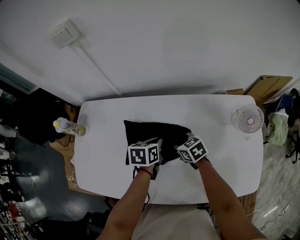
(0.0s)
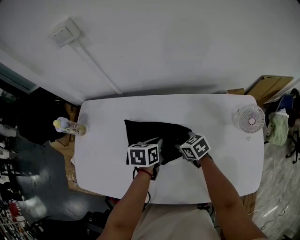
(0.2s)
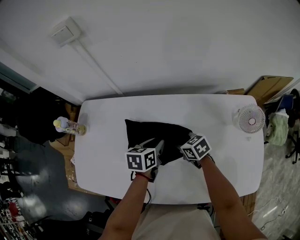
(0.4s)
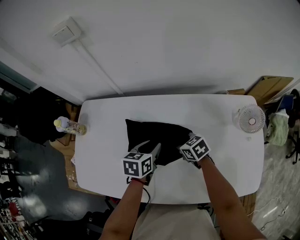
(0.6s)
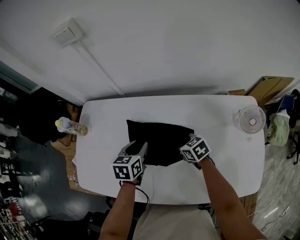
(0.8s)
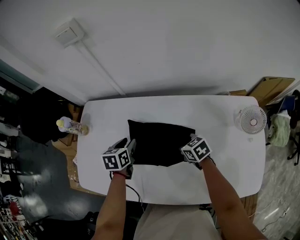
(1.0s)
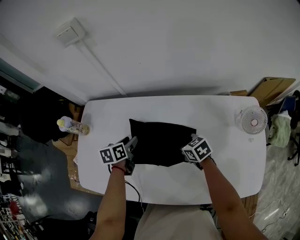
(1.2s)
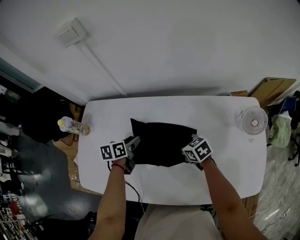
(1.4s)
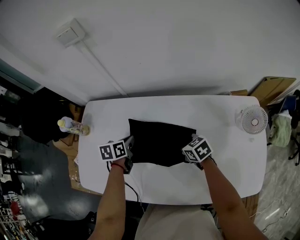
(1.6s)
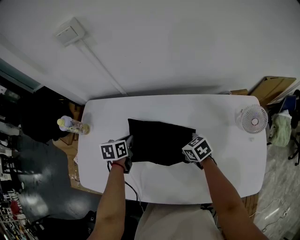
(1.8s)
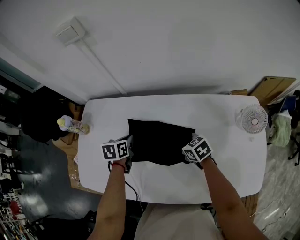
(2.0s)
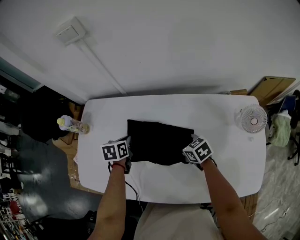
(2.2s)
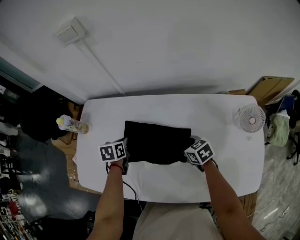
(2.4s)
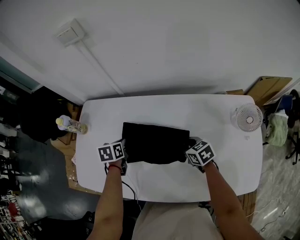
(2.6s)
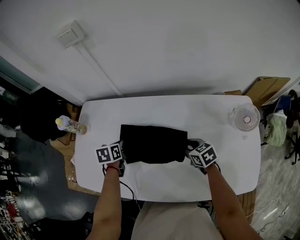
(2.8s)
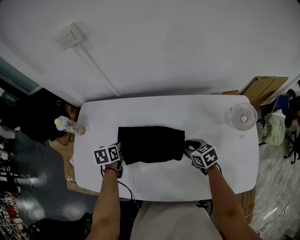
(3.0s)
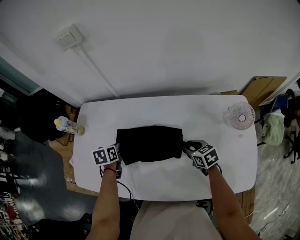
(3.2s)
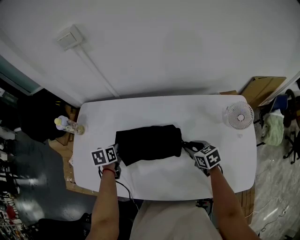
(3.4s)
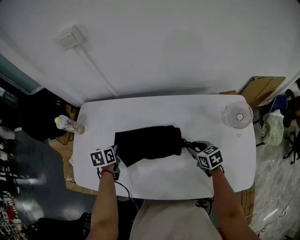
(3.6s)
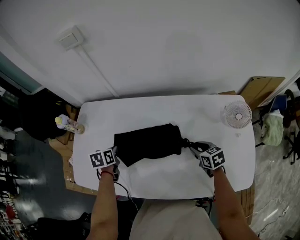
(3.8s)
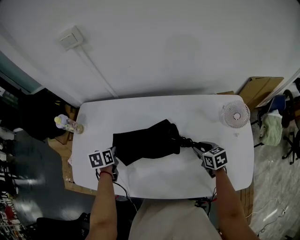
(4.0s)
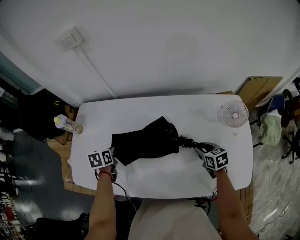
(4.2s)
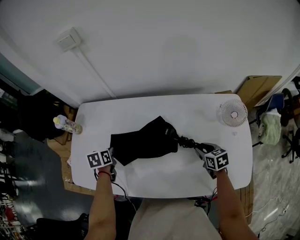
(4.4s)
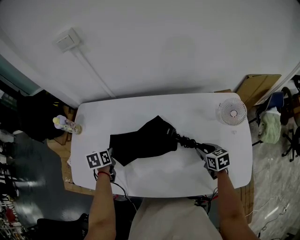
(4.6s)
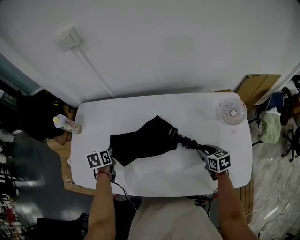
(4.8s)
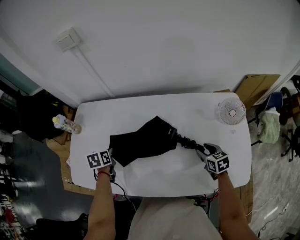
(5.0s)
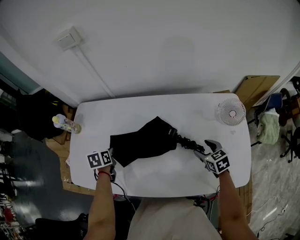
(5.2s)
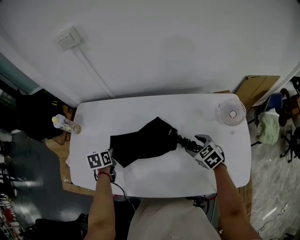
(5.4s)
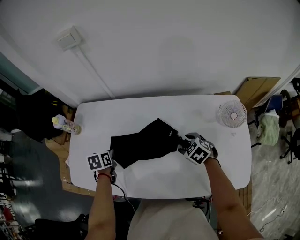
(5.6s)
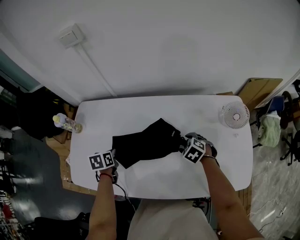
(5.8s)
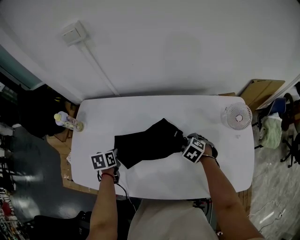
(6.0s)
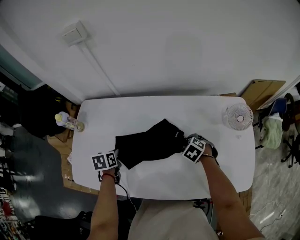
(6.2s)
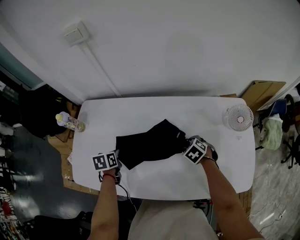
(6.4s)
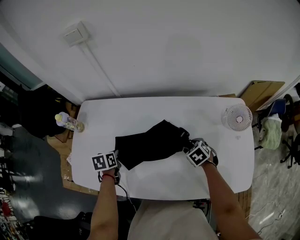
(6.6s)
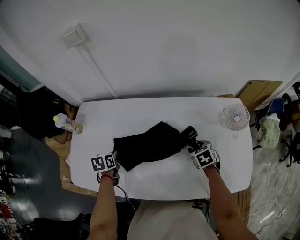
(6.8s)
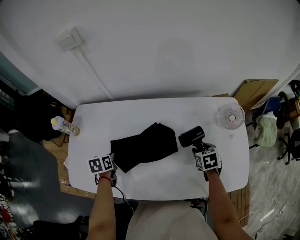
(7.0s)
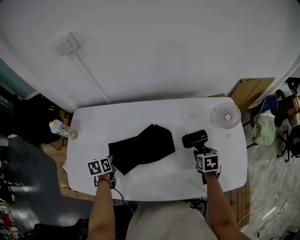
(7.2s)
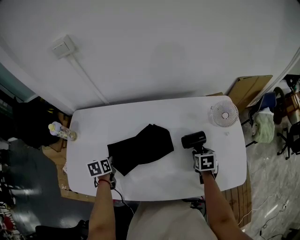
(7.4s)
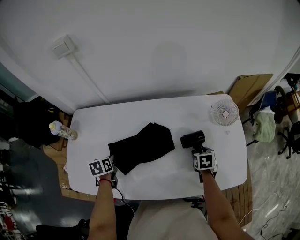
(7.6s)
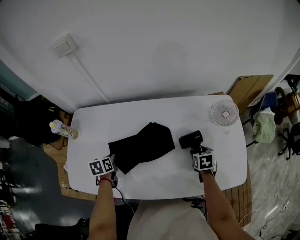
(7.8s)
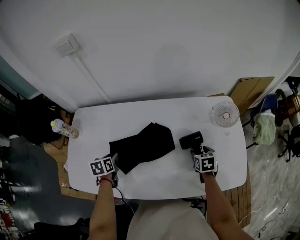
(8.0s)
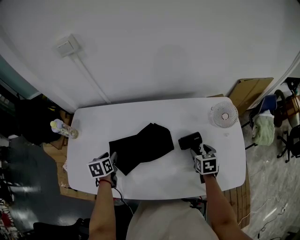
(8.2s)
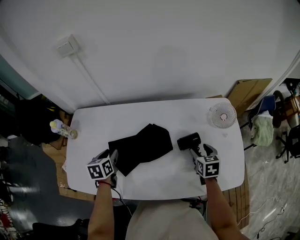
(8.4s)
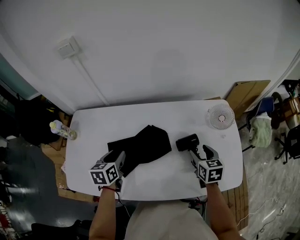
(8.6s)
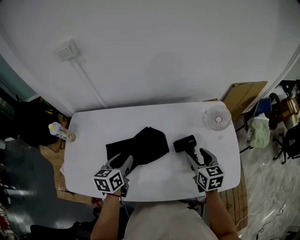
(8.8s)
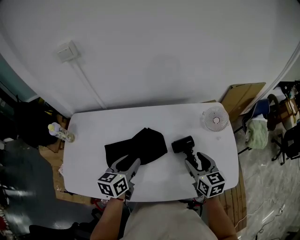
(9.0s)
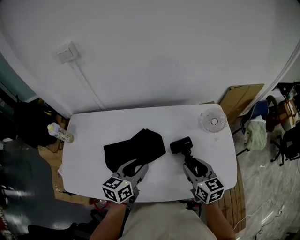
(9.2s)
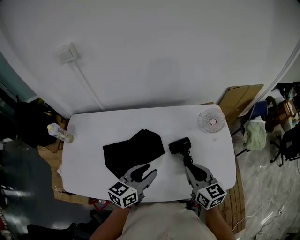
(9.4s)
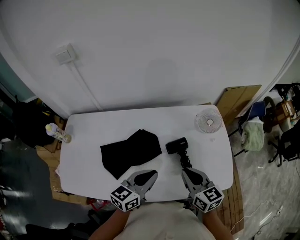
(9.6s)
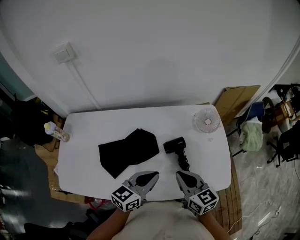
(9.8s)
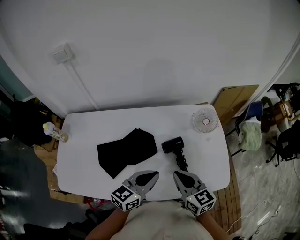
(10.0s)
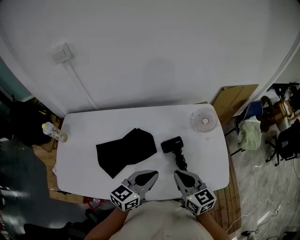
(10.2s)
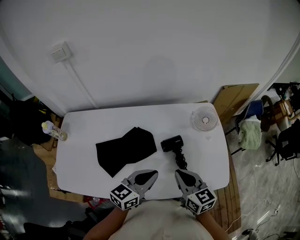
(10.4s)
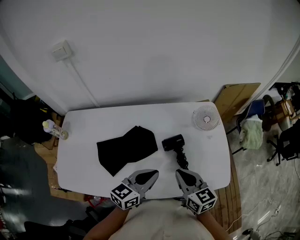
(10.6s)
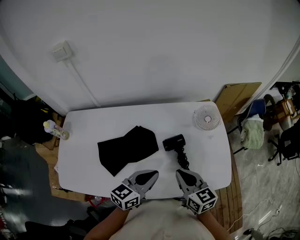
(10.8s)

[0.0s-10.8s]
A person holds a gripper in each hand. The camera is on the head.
0.0s to 1.6s: The left gripper shifts about 15 cm to the left, and opens, then closes once more.
1.6s to 3.0s: The right gripper travels backward and to the right by roughly 10 cm; the left gripper shifts by about 5 cm.
3.0s to 4.6s: The right gripper heads to the right and backward, covering approximately 15 cm.
4.6s to 6.2s: The right gripper moves to the left and forward, about 10 cm, rotates around the line of its fingers by roughly 40 degrees, counterclockwise from behind, and opens its fingers.
6.2s to 7.8s: The right gripper goes some 15 cm to the right and backward, and rotates around the line of its fingers by about 50 degrees, clockwise from behind.
7.8s to 9.2s: The right gripper moves upward, approximately 20 cm, and angles its fingers upward, by roughly 30 degrees, while the left gripper goes approximately 25 cm to the right and upward, points its fingers some 30 degrees further upward, and opens its fingers.
9.2s to 10.8s: The left gripper heads to the right, covering about 10 cm, and closes. Meanwhile the right gripper heads backward, covering roughly 5 cm, and closes.

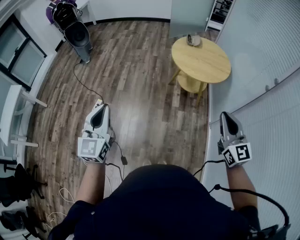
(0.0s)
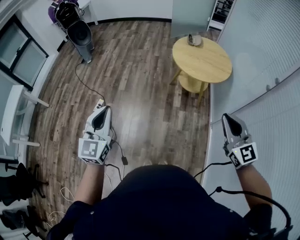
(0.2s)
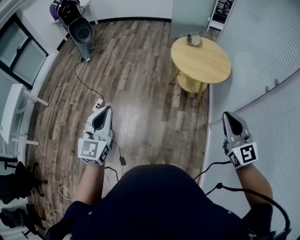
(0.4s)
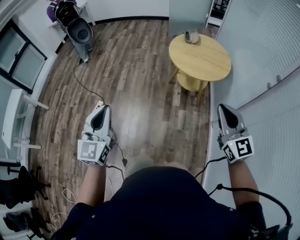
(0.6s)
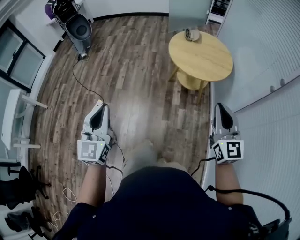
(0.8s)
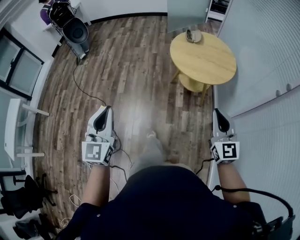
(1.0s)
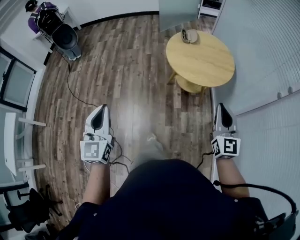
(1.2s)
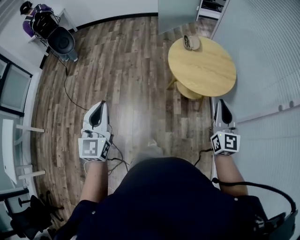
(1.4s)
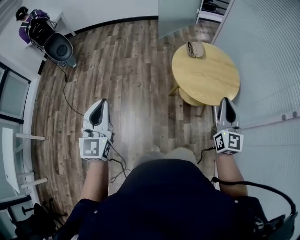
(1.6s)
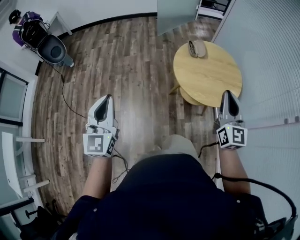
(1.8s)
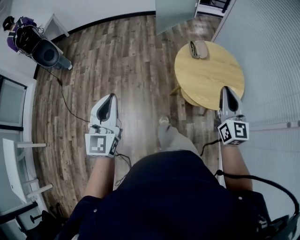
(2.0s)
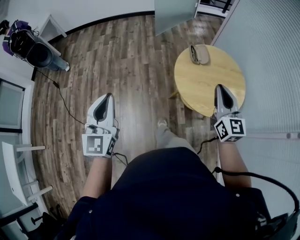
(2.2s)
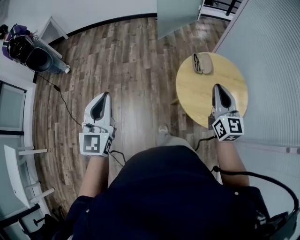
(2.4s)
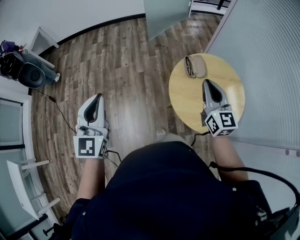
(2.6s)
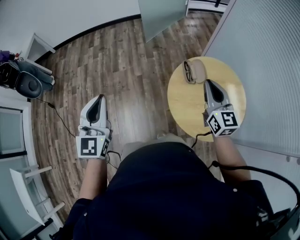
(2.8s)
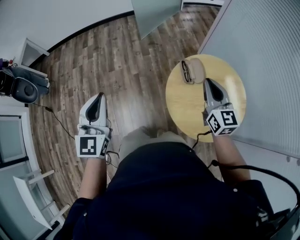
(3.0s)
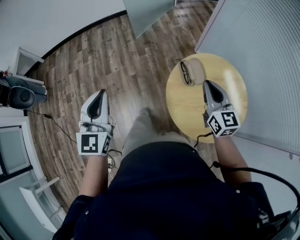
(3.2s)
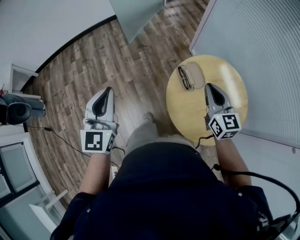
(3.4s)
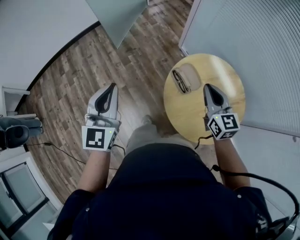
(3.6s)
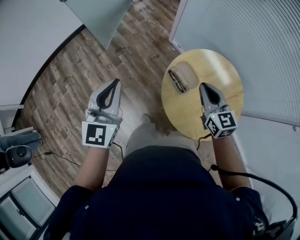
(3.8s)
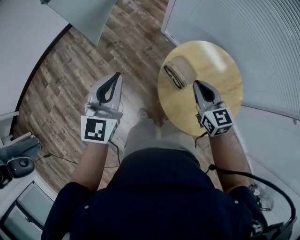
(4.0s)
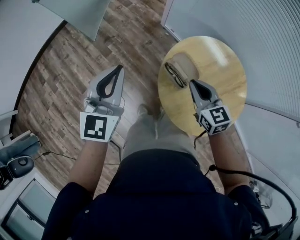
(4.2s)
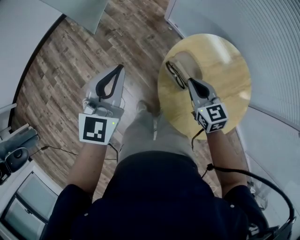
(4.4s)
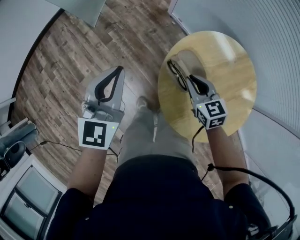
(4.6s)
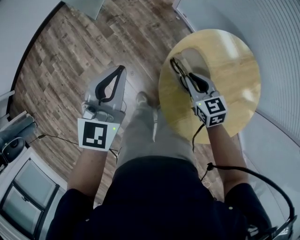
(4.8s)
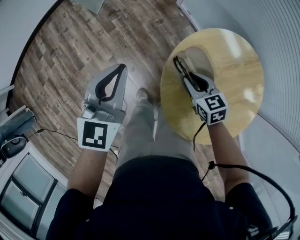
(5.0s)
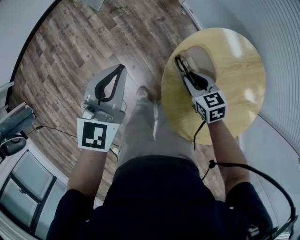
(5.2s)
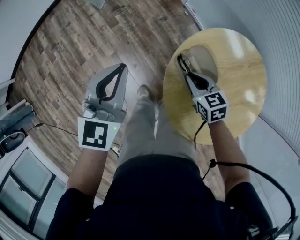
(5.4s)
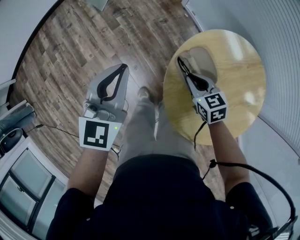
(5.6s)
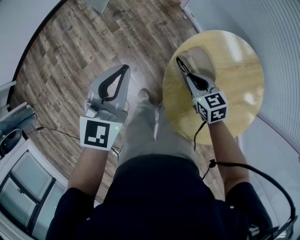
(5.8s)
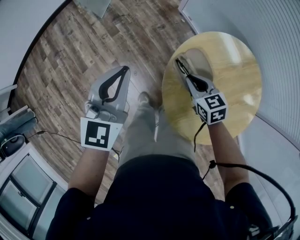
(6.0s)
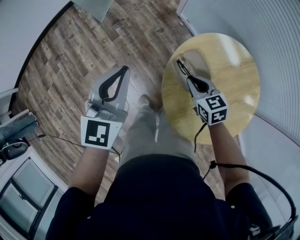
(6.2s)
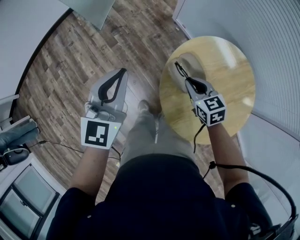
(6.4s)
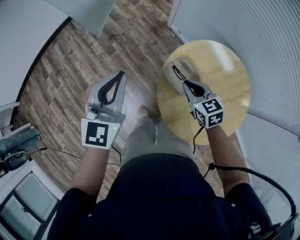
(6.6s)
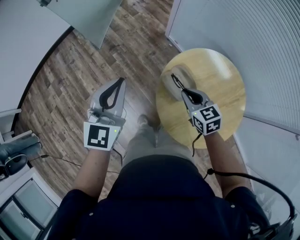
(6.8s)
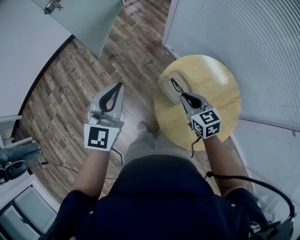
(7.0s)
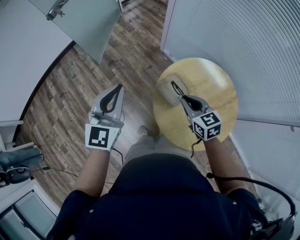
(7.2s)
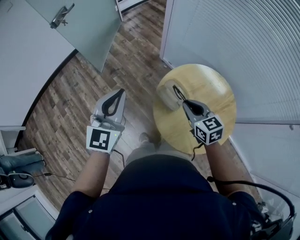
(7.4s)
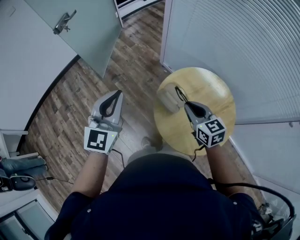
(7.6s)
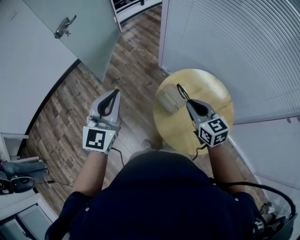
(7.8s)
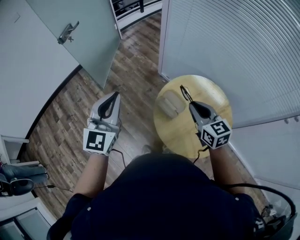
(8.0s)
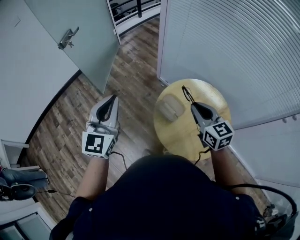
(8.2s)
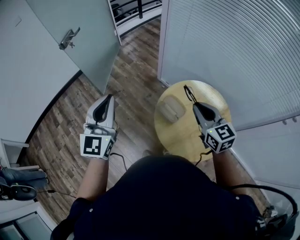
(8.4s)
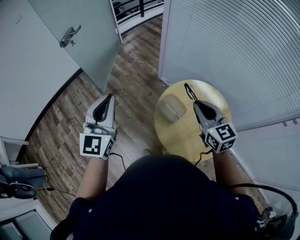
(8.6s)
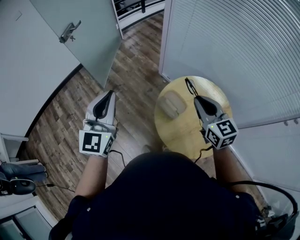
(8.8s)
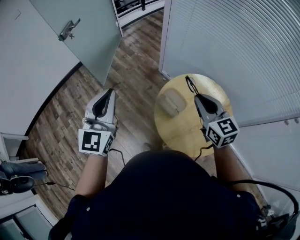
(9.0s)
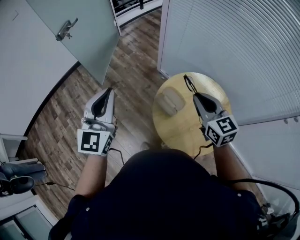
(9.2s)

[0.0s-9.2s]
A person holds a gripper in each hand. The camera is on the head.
0.0s to 1.6s: Both grippers move forward, roughly 40 cm. The right gripper turns by roughly 30 degrees.
1.6s to 3.0s: The two grippers travel together, forward, about 50 cm.
3.0s to 4.6s: The right gripper shifts about 25 cm downward, and changes its angle by roughly 30 degrees, while the left gripper changes place by about 40 cm, and swivels roughly 40 degrees.
6.2s to 7.6s: Both grippers travel together upward and backward, about 20 cm. The right gripper swivels about 20 degrees.
7.6s to 9.2s: The left gripper goes about 5 cm upward; the right gripper goes roughly 10 cm upward.

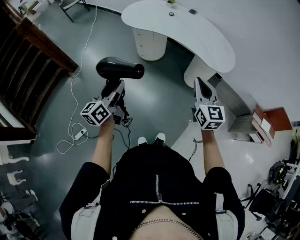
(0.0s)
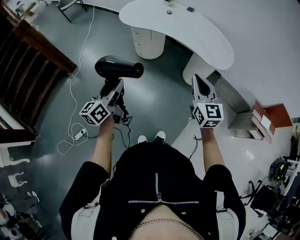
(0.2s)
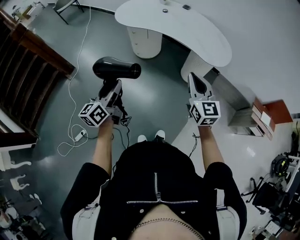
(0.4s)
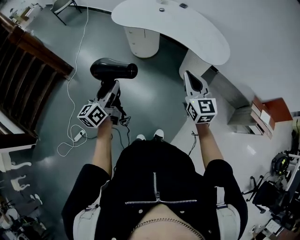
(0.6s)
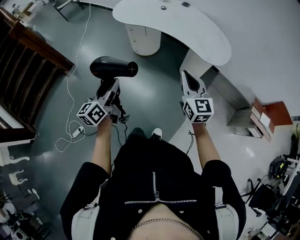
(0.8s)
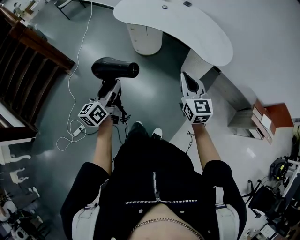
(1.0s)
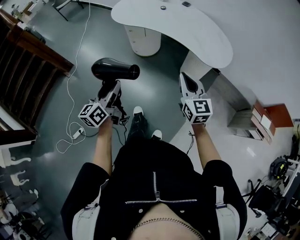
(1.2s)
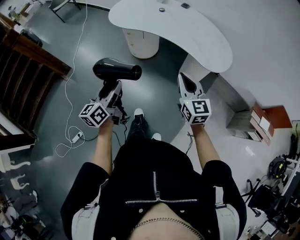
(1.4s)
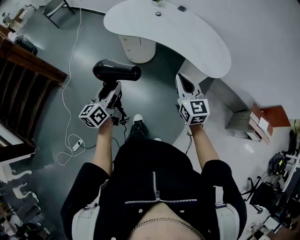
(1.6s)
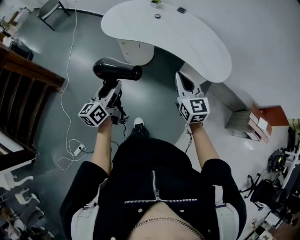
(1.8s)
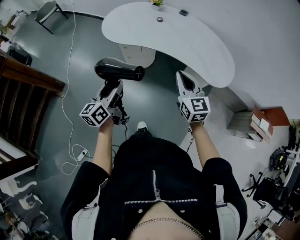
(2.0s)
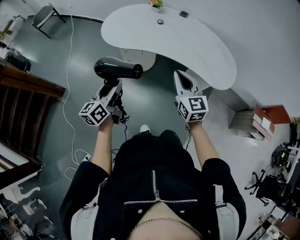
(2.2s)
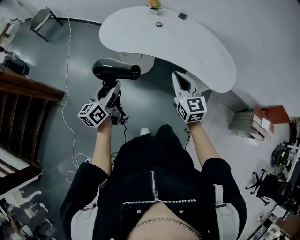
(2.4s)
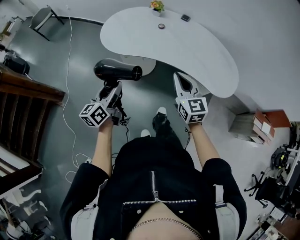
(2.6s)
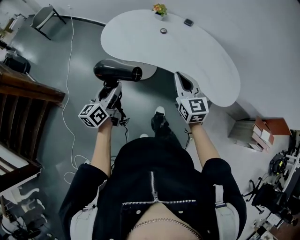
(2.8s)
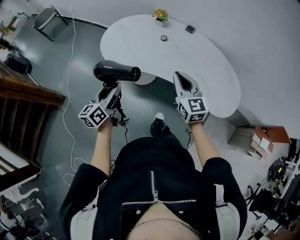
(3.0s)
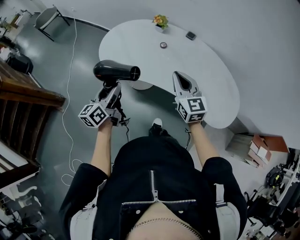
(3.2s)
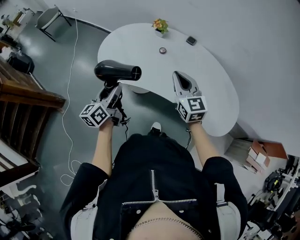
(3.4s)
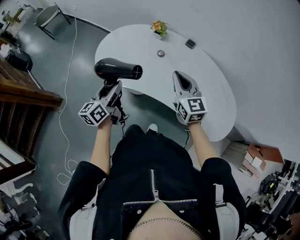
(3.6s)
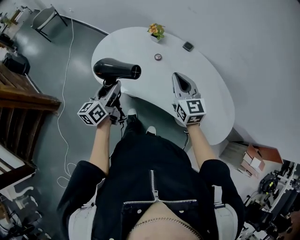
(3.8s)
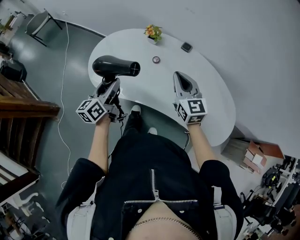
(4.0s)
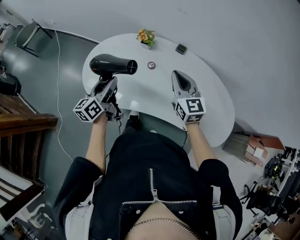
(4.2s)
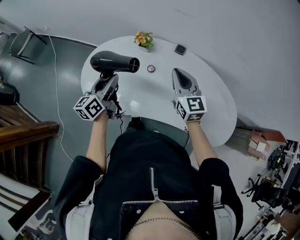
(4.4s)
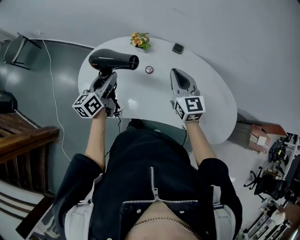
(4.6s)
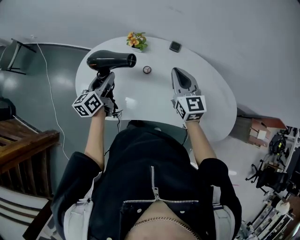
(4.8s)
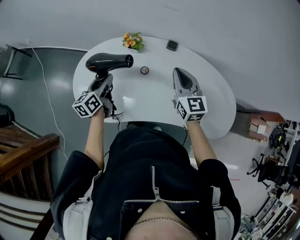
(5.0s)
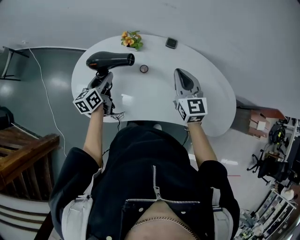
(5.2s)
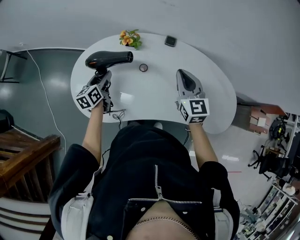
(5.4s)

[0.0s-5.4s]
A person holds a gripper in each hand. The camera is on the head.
0.0s to 1.4s: Both grippers move forward, roughly 10 cm.
1.4s to 2.8s: Both grippers move forward, some 30 cm.
2.8s to 4.0s: The two grippers go approximately 25 cm forward.
4.0s to 5.4s: The right gripper heads forward, covering about 10 cm, and swivels approximately 20 degrees. Meanwhile the left gripper is displaced forward and downward by about 25 cm, and rotates about 20 degrees.
